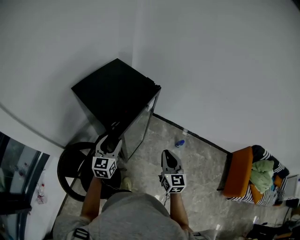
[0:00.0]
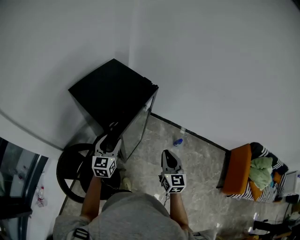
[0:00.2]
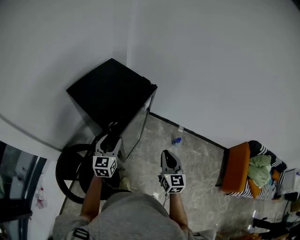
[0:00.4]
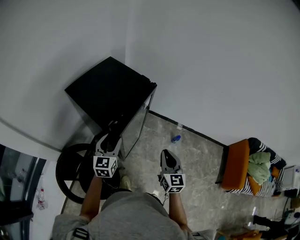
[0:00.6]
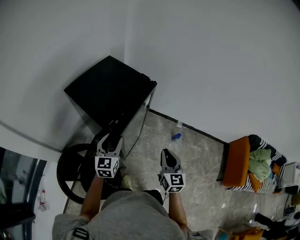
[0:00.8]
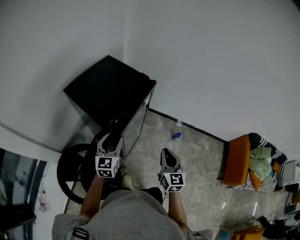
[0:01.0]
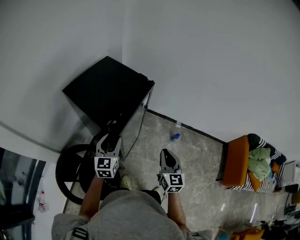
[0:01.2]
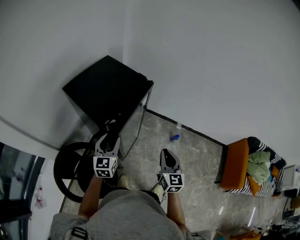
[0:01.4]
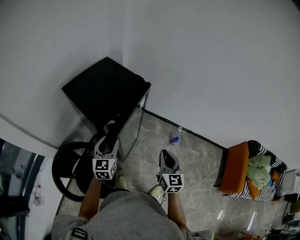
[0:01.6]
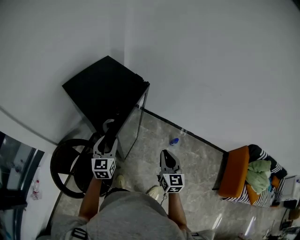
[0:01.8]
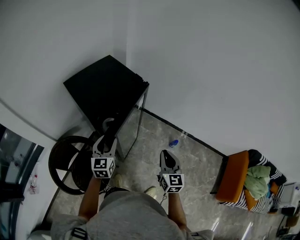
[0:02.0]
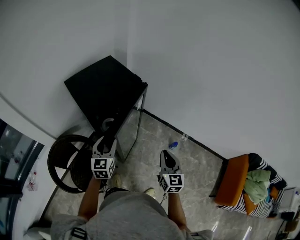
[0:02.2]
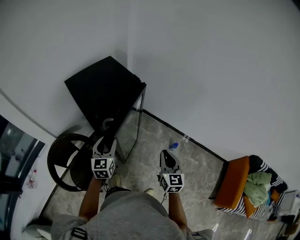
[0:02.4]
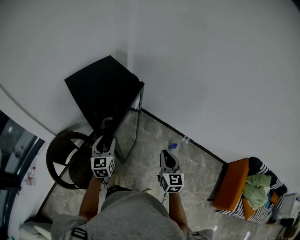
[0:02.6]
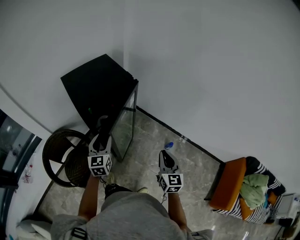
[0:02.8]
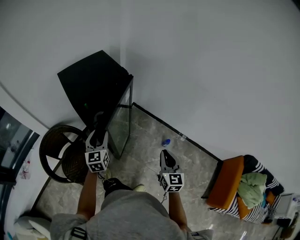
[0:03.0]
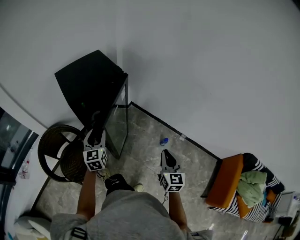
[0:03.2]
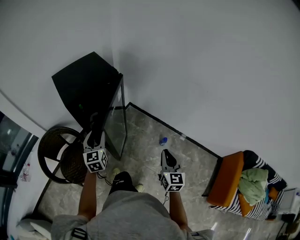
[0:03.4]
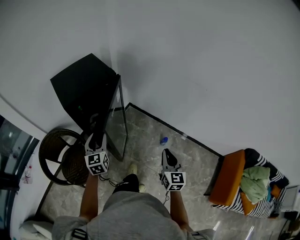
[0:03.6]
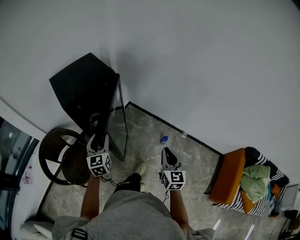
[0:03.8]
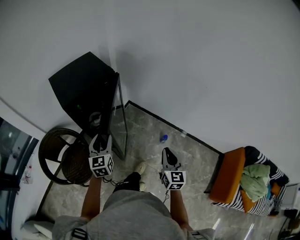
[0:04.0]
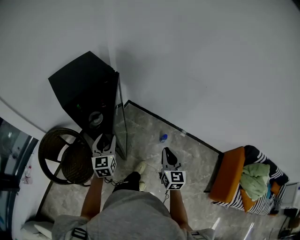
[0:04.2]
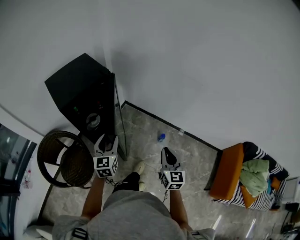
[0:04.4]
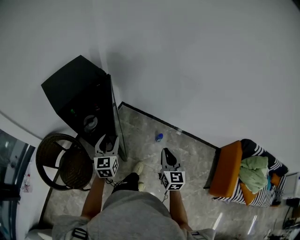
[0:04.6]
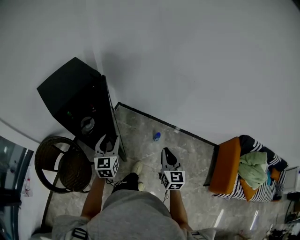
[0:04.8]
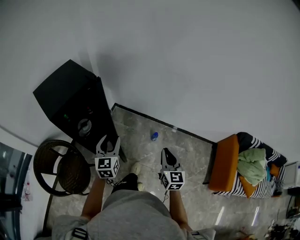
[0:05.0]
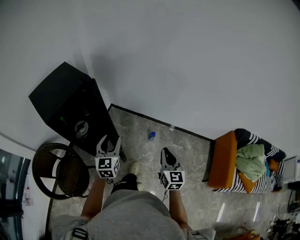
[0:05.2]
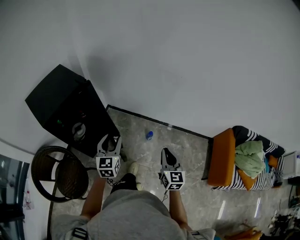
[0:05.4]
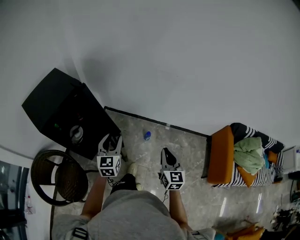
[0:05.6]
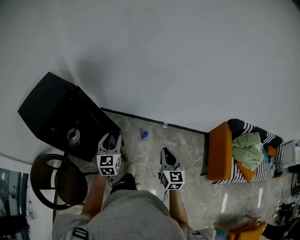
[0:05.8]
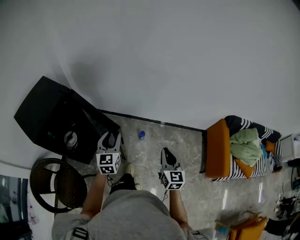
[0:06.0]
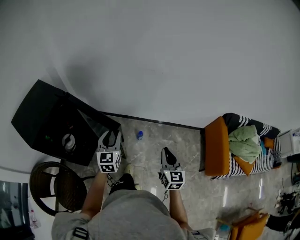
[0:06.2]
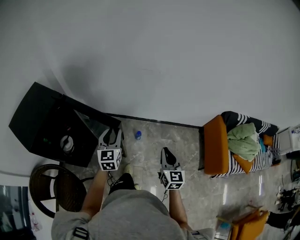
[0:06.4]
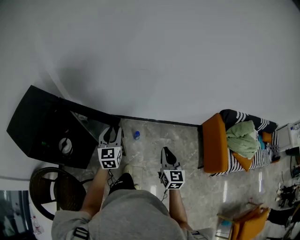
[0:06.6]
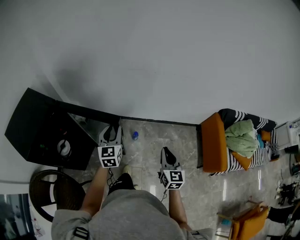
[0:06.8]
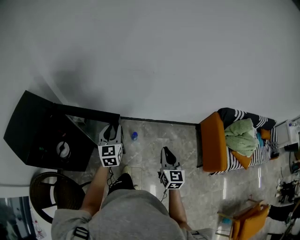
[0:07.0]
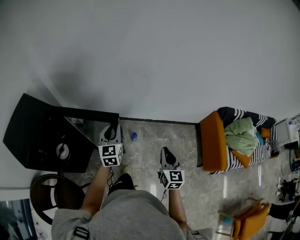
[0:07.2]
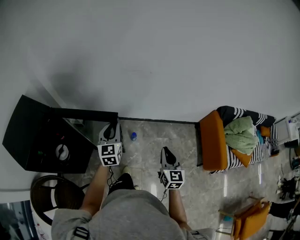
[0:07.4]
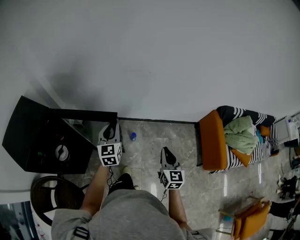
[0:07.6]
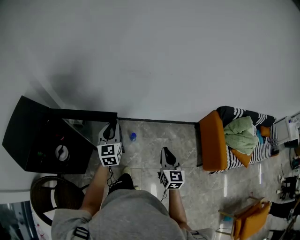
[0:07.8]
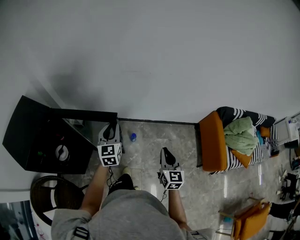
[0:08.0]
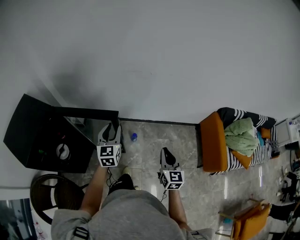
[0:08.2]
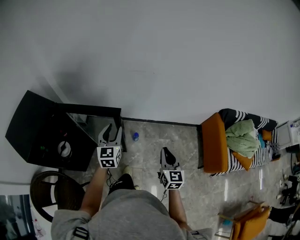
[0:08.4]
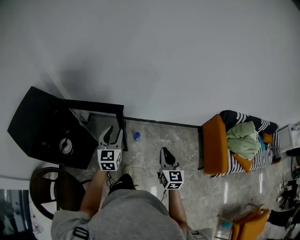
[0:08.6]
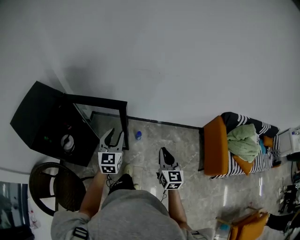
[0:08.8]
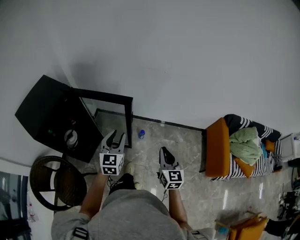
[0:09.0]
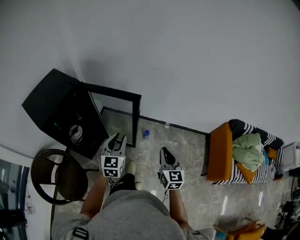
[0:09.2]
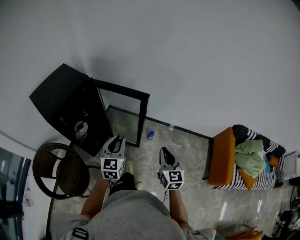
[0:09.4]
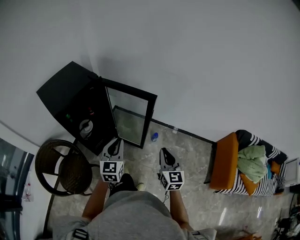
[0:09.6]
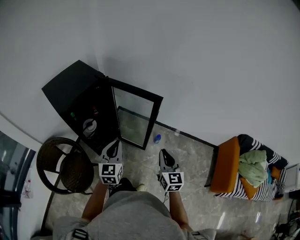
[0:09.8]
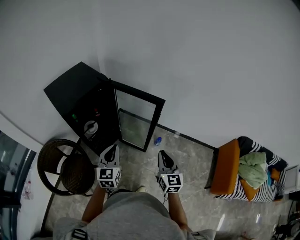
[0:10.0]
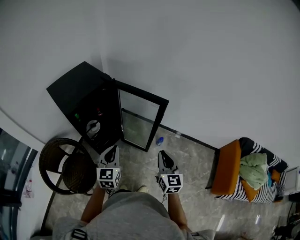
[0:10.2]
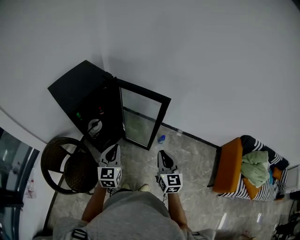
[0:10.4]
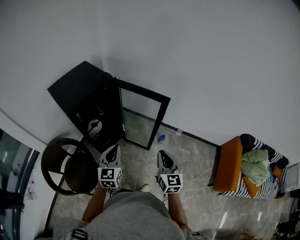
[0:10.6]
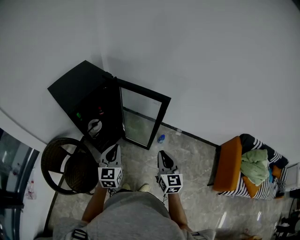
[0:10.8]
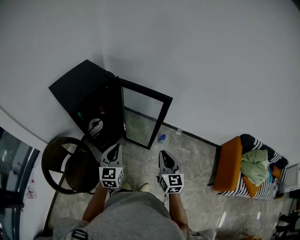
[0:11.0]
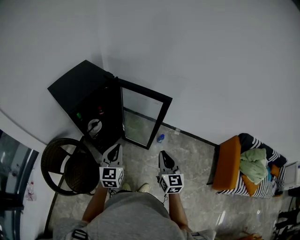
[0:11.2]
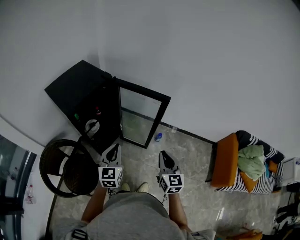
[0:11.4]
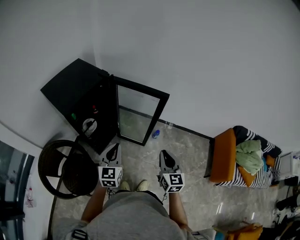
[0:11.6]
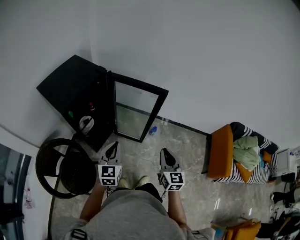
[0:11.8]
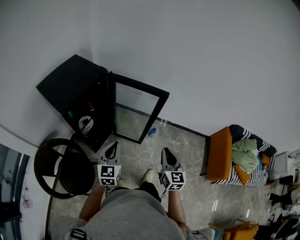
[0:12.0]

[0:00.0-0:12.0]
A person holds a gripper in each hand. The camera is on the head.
0:00.0 to 0:01.6: The grippers stay close to where they were, moving slightly.
0:01.6 to 0:03.0: The left gripper shifts approximately 10 cm to the right. Meanwhile the right gripper is displaced to the right by roughly 15 cm.
0:03.0 to 0:04.4: The right gripper is displaced to the right by approximately 5 cm, while the left gripper goes about 10 cm to the right.
0:04.4 to 0:06.0: The right gripper shifts roughly 10 cm to the right; the left gripper shifts about 15 cm to the right and forward, and changes its angle by roughly 20 degrees.
0:06.0 to 0:07.6: The left gripper heads forward and to the right, covering some 15 cm; the right gripper heads forward, covering about 5 cm.
0:07.6 to 0:09.0: The left gripper shifts approximately 15 cm backward; the right gripper heads backward, covering approximately 5 cm.
0:09.0 to 0:10.4: The left gripper is displaced to the left and backward by approximately 20 cm, and closes up; the right gripper moves to the left, some 15 cm.
0:10.4 to 0:12.0: The grippers stay close to where they were, moving slightly.

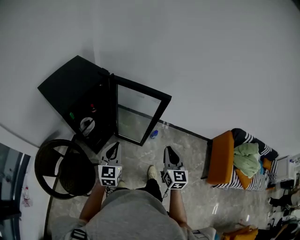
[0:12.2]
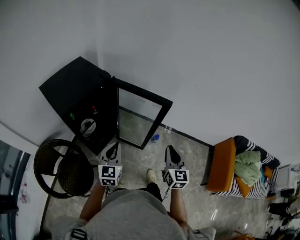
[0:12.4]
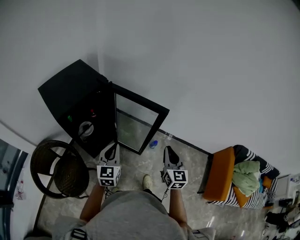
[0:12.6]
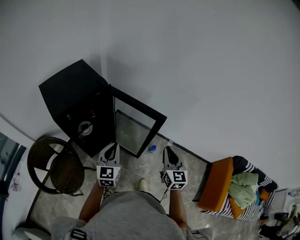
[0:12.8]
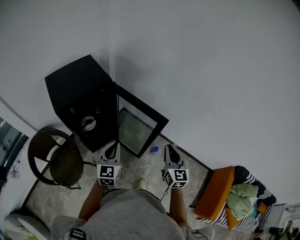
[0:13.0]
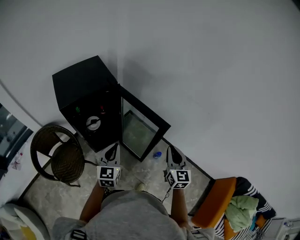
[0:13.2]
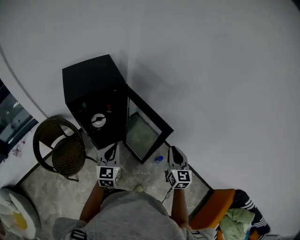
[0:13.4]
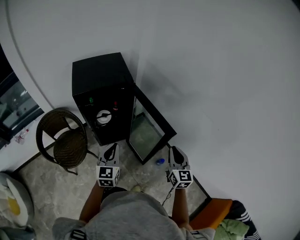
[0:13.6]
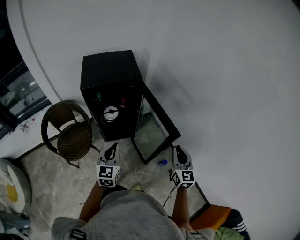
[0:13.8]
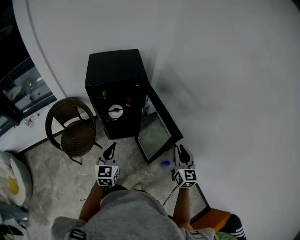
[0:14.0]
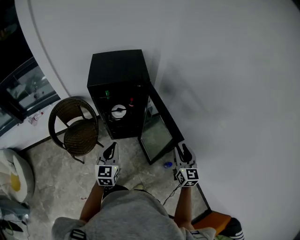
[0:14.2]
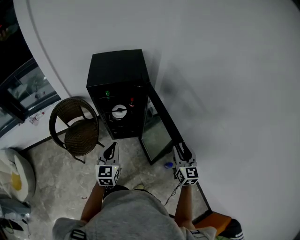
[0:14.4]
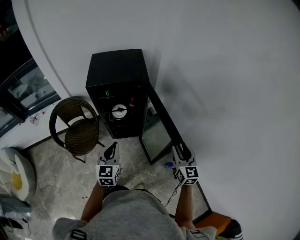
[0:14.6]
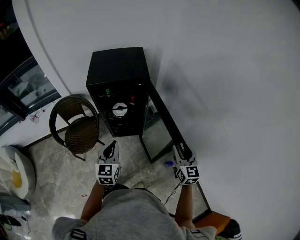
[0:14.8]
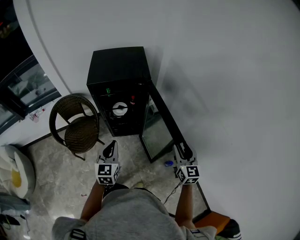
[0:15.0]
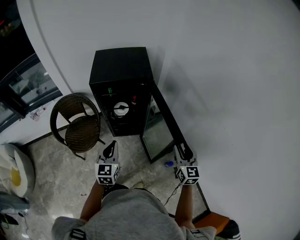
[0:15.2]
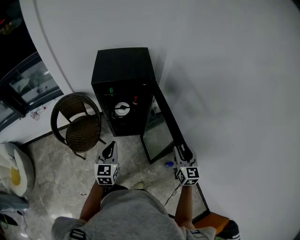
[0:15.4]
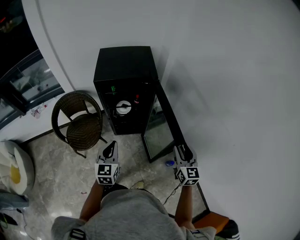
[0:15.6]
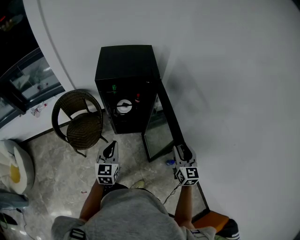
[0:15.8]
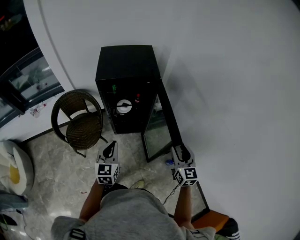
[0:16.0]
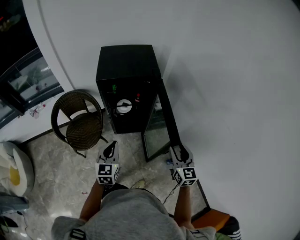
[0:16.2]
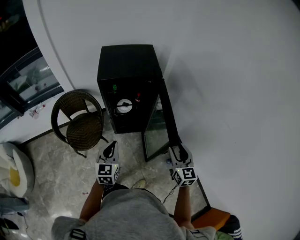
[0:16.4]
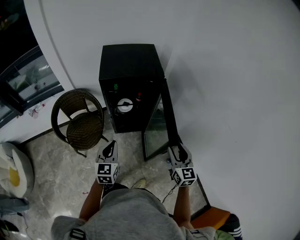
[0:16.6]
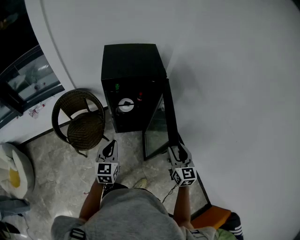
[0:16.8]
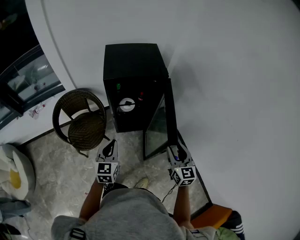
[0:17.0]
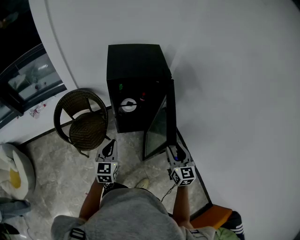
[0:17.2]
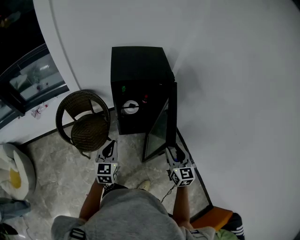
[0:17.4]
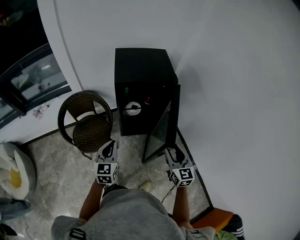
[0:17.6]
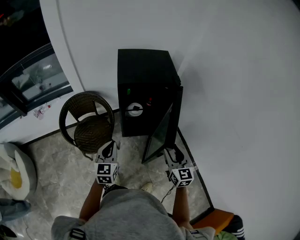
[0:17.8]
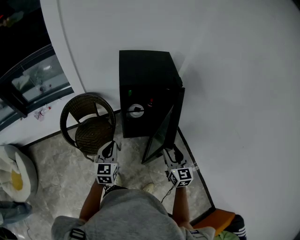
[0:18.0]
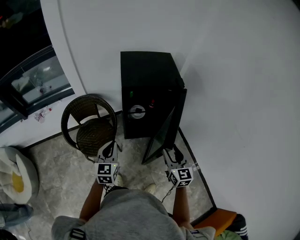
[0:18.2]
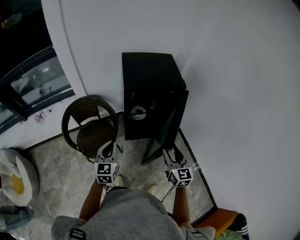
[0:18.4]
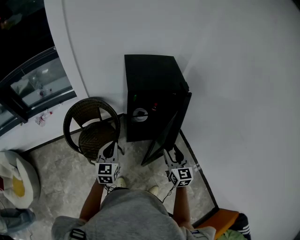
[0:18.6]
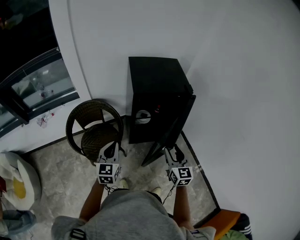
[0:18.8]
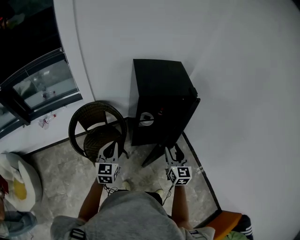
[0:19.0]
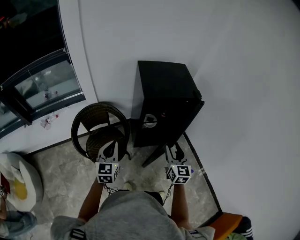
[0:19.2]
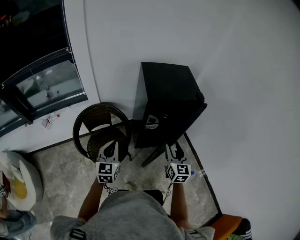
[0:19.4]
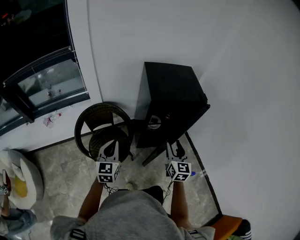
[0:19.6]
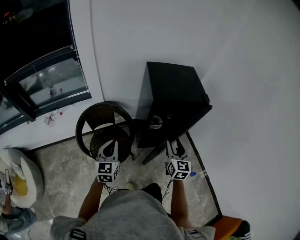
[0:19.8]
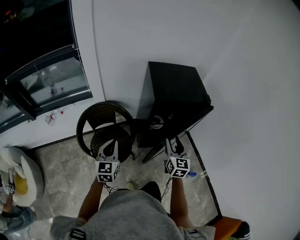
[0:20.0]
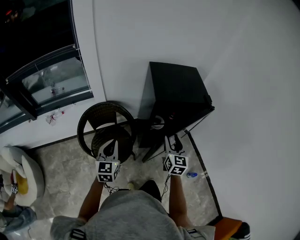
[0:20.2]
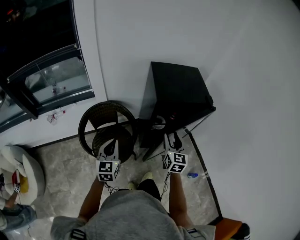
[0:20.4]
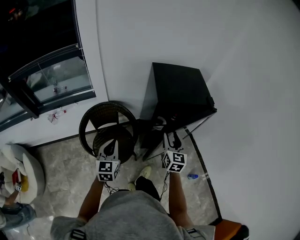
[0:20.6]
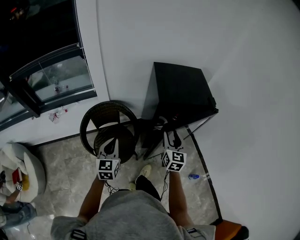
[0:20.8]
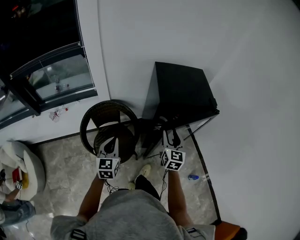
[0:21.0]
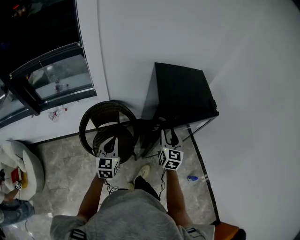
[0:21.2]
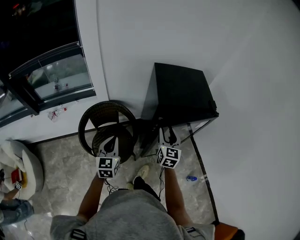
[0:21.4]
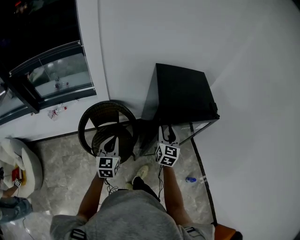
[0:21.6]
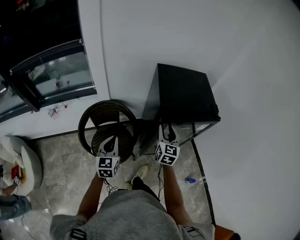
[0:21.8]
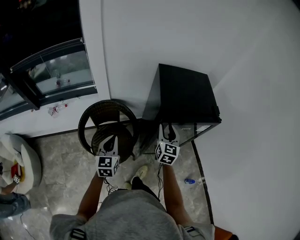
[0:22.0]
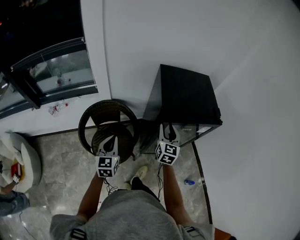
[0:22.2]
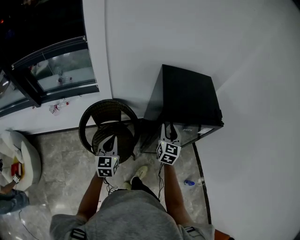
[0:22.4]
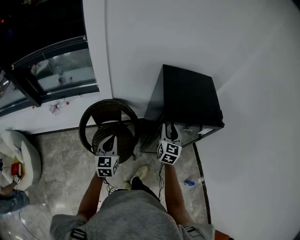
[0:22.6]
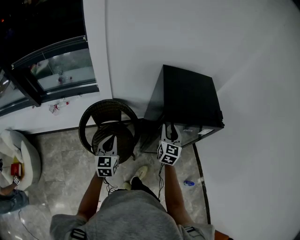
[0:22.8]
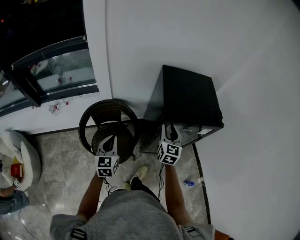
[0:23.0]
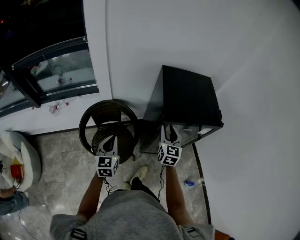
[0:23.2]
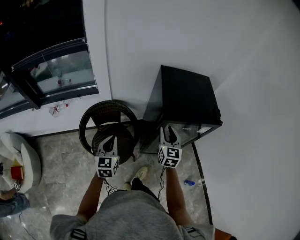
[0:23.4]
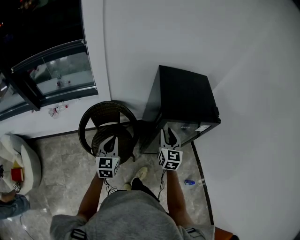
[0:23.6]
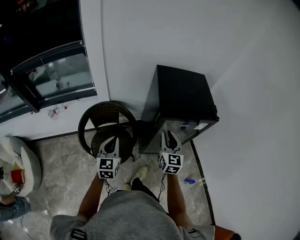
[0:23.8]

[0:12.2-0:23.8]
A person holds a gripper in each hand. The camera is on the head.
0:12.2 to 0:13.6: The left gripper ends up some 10 cm from where it was, and changes its angle by some 40 degrees, while the right gripper shifts by approximately 25 cm, and changes its angle by some 40 degrees.
0:13.6 to 0:15.0: The right gripper heads forward, covering approximately 5 cm, and opens its fingers.
0:15.0 to 0:16.6: The grippers both shift to the left by about 10 cm.
0:16.6 to 0:18.0: The grippers both shift to the left by some 15 cm.
0:18.0 to 0:19.4: Both grippers travel together to the left and forward, approximately 15 cm.
0:19.4 to 0:21.0: The right gripper moves forward and to the left, some 10 cm; the left gripper shifts by roughly 5 cm.
0:21.0 to 0:22.4: The right gripper goes roughly 10 cm forward.
0:22.4 to 0:23.8: The right gripper goes roughly 5 cm backward.
